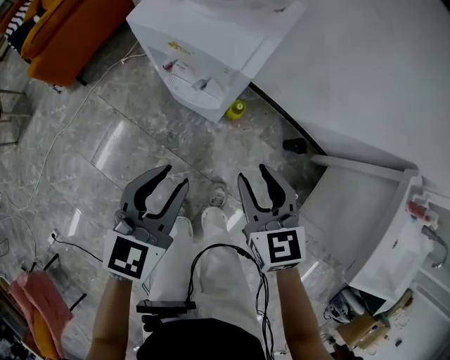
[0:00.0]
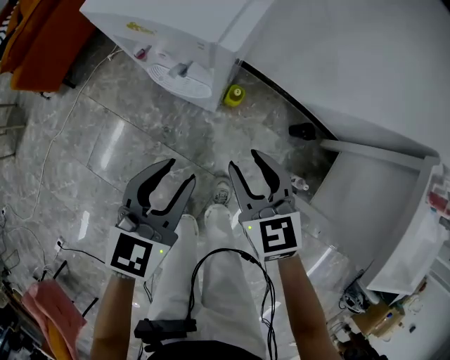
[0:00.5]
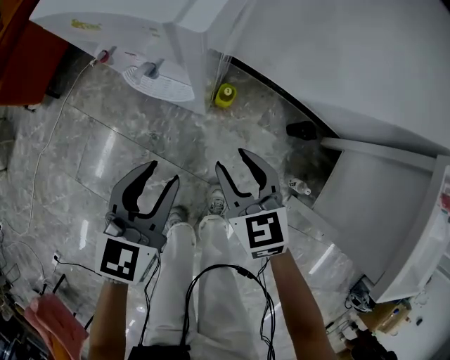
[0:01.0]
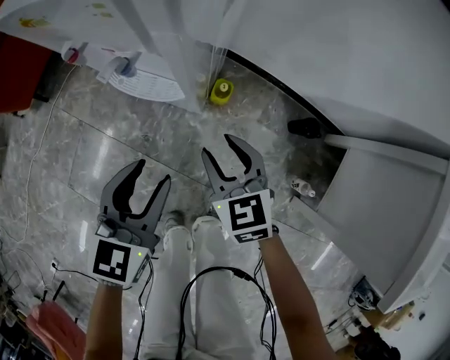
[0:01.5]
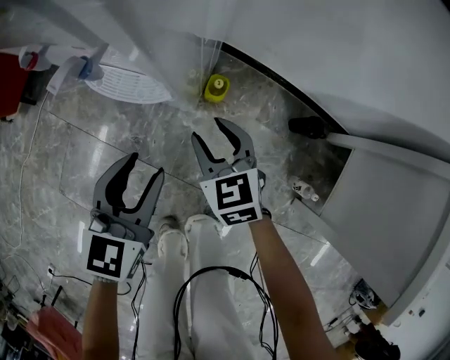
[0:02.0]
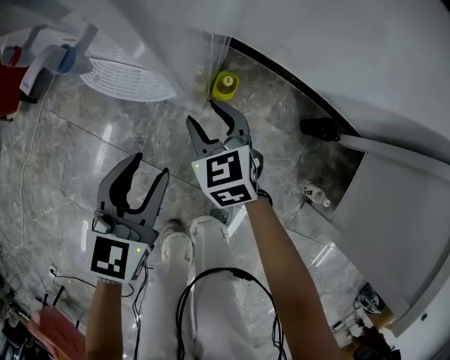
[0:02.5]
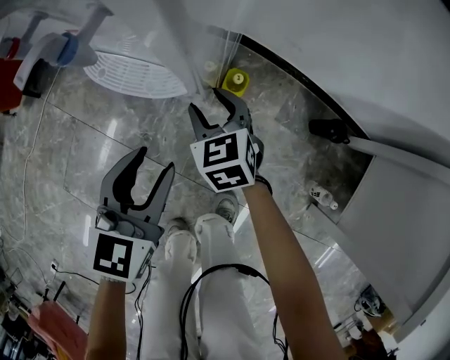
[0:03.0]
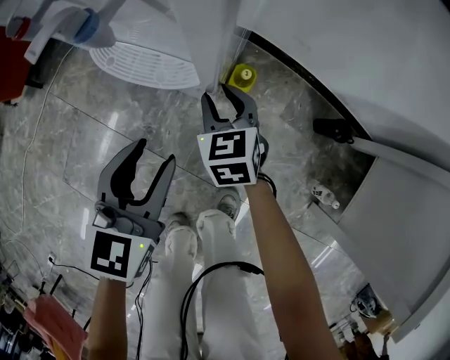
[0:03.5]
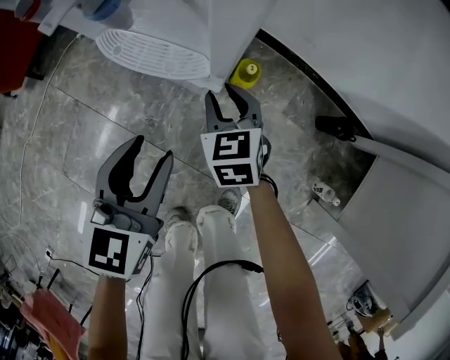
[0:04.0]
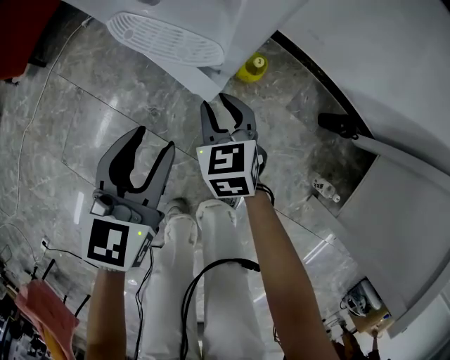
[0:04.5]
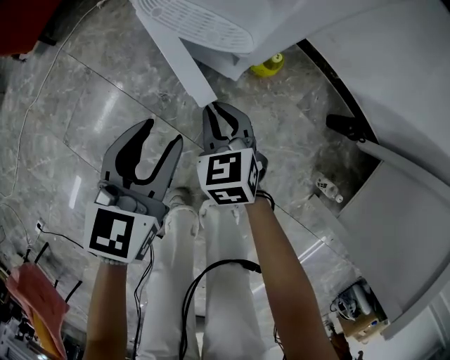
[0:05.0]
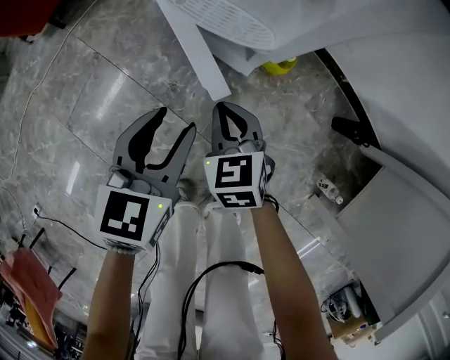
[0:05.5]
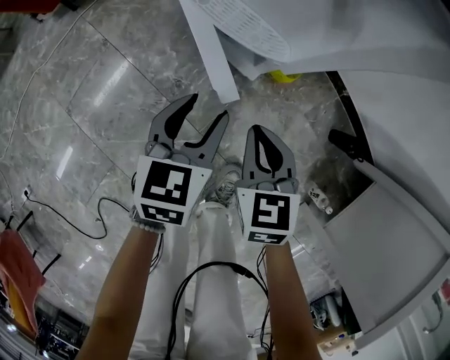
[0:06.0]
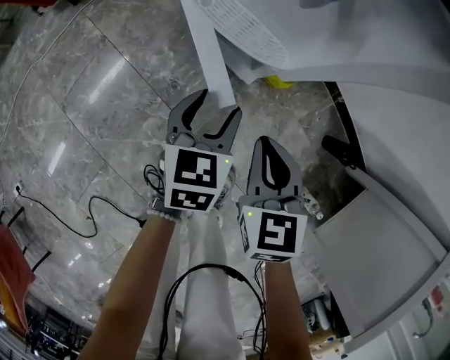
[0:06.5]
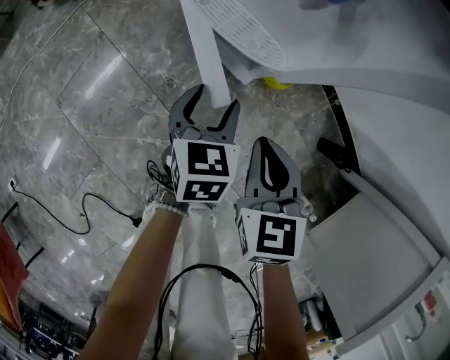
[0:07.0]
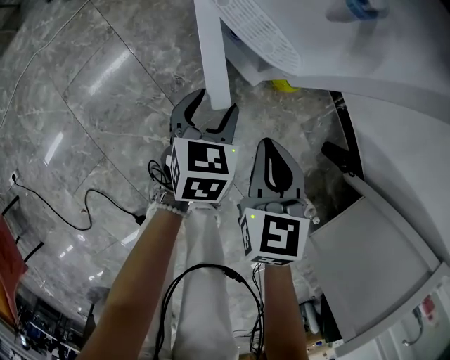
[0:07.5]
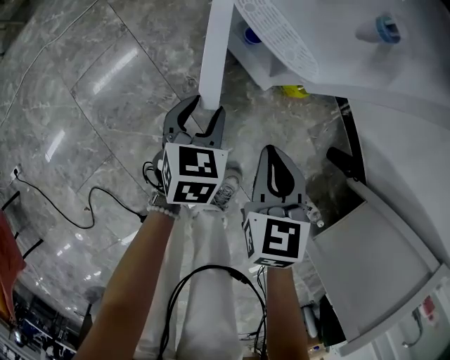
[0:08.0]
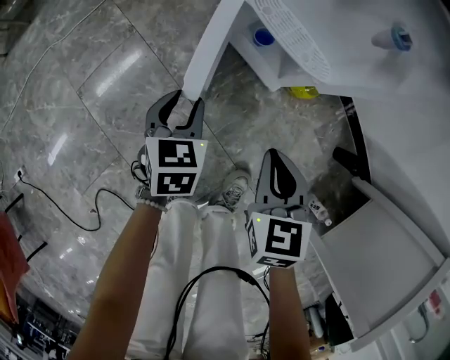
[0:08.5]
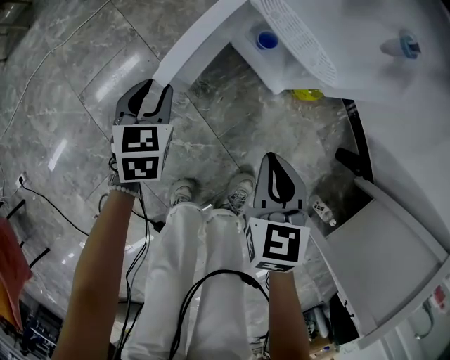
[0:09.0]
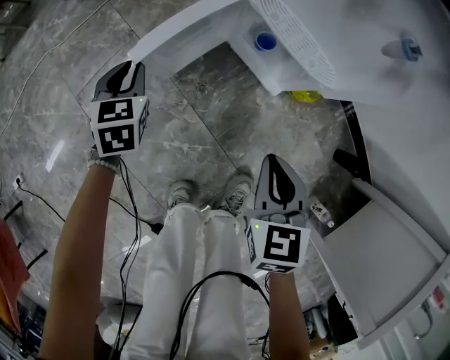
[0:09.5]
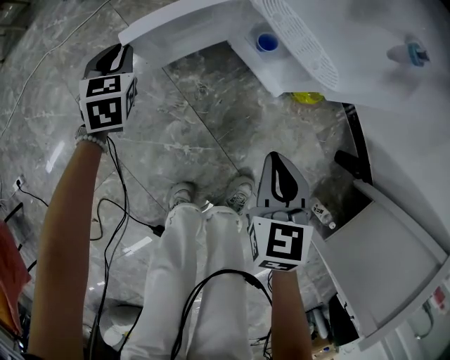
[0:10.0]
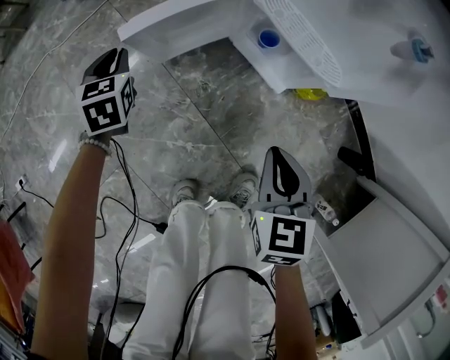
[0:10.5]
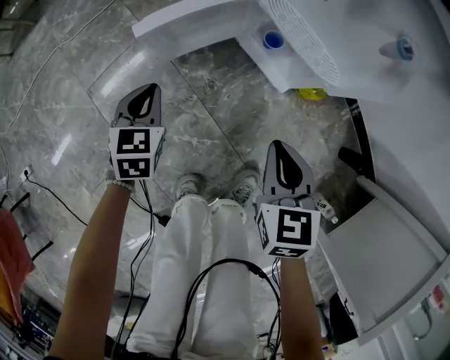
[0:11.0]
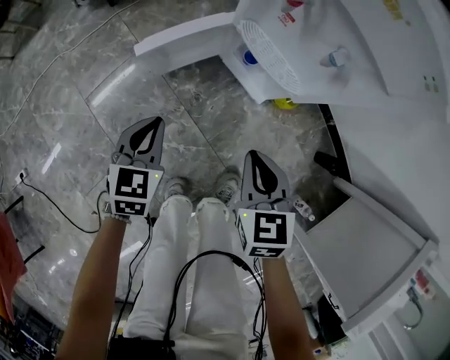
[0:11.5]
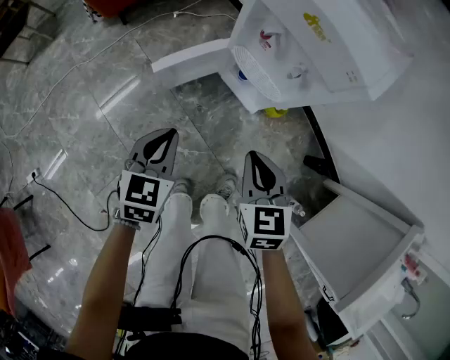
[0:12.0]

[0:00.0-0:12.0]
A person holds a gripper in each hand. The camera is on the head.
0:00.0 to 0:02.0: The grippers both shift downward by roughly 30 cm.
0:02.0 to 0:04.0: The right gripper travels downward by some 10 cm. The left gripper moves some 5 cm.
0:04.0 to 0:06.0: The right gripper is displaced backward and upward by roughly 15 cm, and closes its fingers. The left gripper heads downward, covering roughly 5 cm.
0:06.0 to 0:08.0: The left gripper moves downward and to the left, roughly 10 cm.
0:08.0 to 0:10.0: The left gripper travels to the left and forward by some 30 cm, and closes.
0:10.0 to 0:12.0: The left gripper moves upward, backward and to the right, approximately 35 cm, and changes its angle by roughly 20 degrees, while the right gripper goes approximately 20 cm upward.

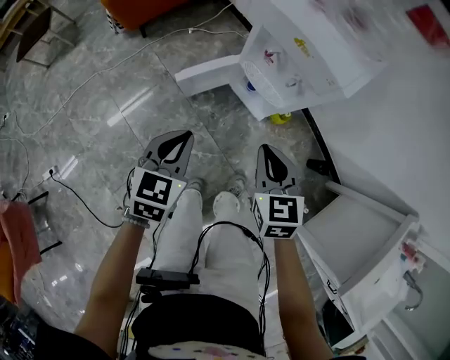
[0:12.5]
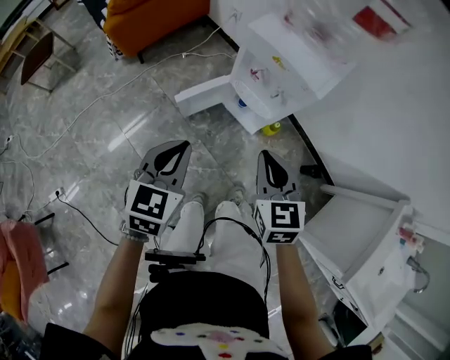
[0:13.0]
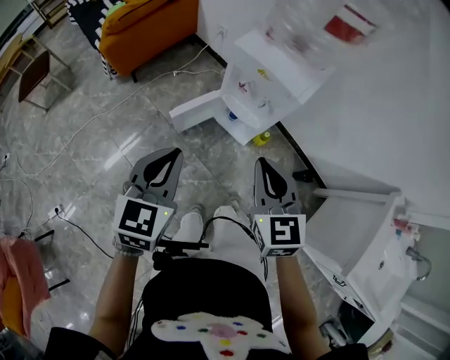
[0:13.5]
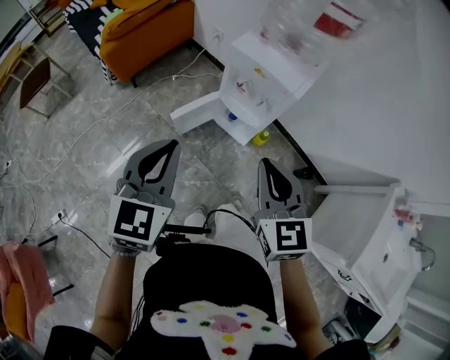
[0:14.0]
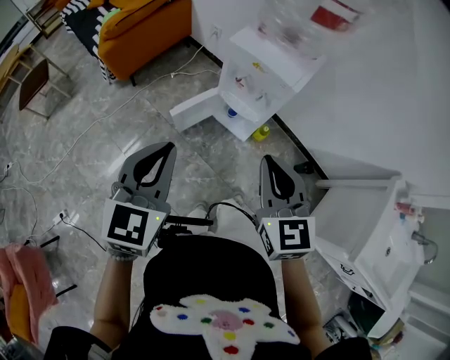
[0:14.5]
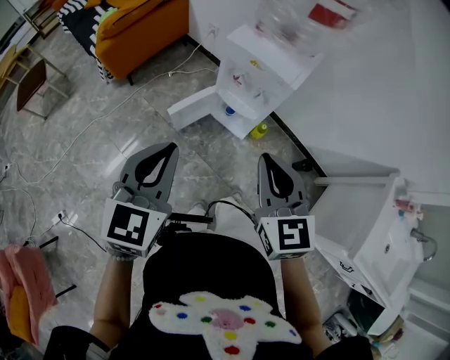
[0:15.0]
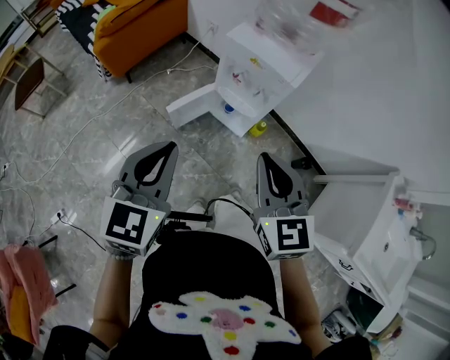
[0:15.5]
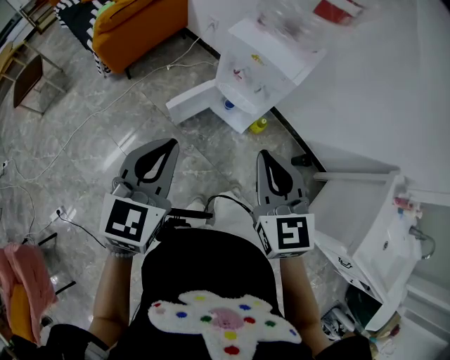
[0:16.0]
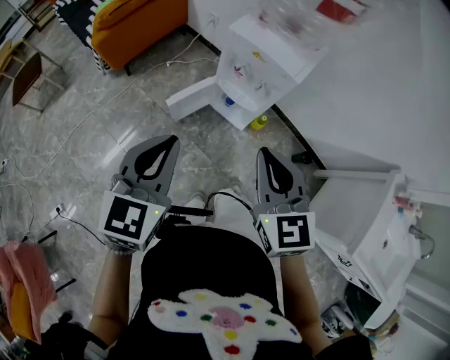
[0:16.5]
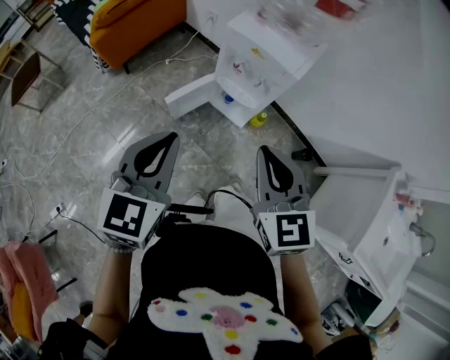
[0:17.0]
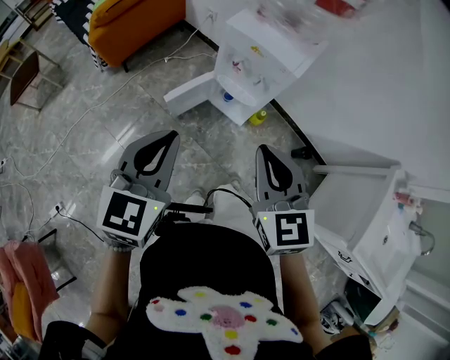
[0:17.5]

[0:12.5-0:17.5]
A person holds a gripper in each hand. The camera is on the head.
0:12.5 to 0:15.0: Both grippers move upward, some 25 cm.
0:15.0 to 0:17.5: There are only small adjustments of the grippers.

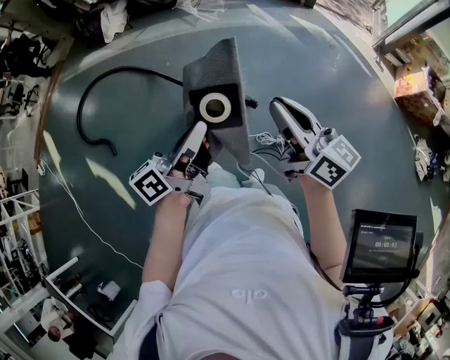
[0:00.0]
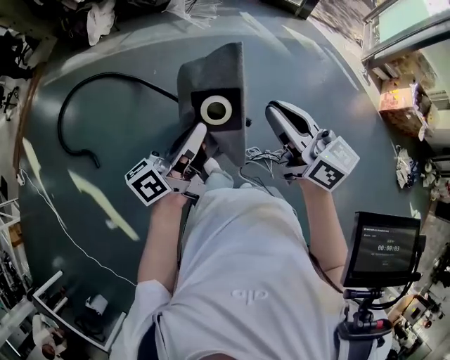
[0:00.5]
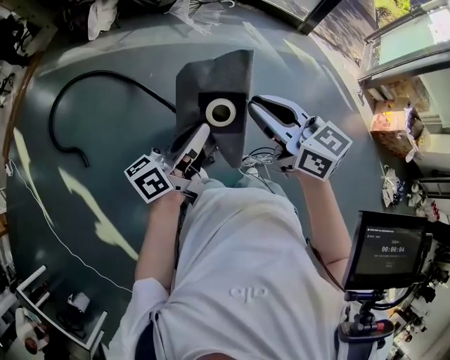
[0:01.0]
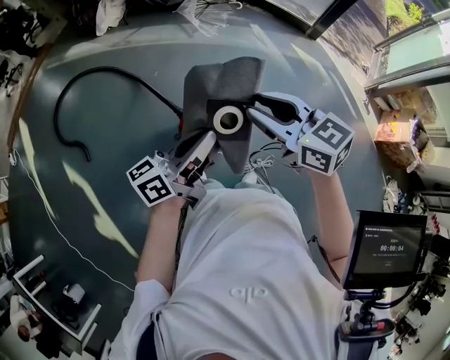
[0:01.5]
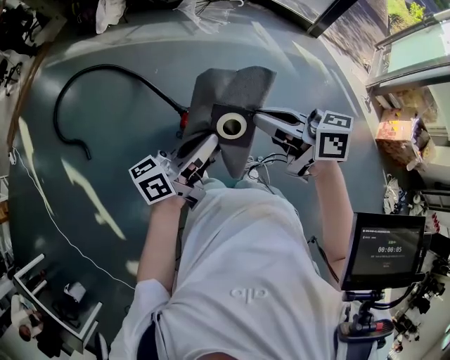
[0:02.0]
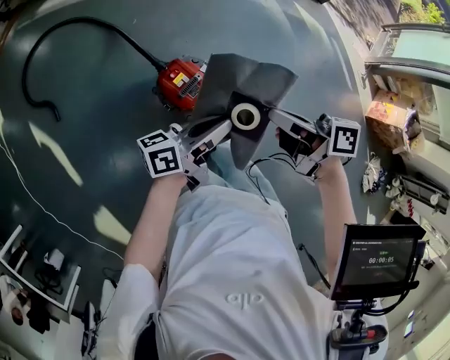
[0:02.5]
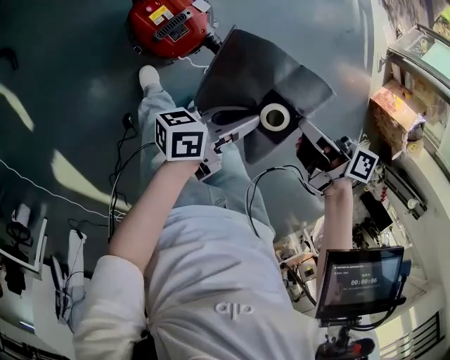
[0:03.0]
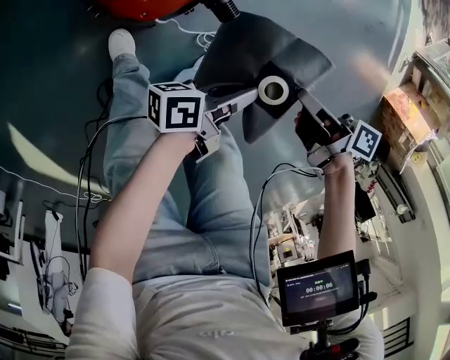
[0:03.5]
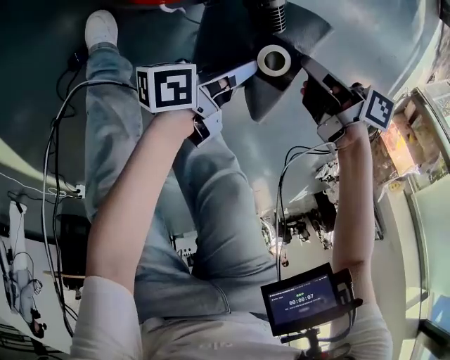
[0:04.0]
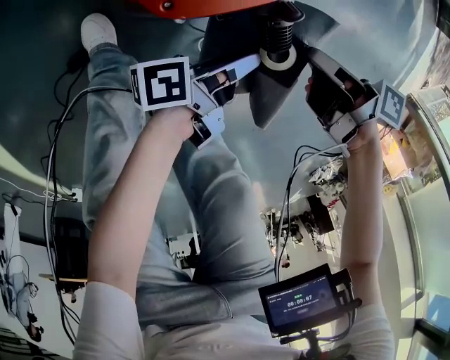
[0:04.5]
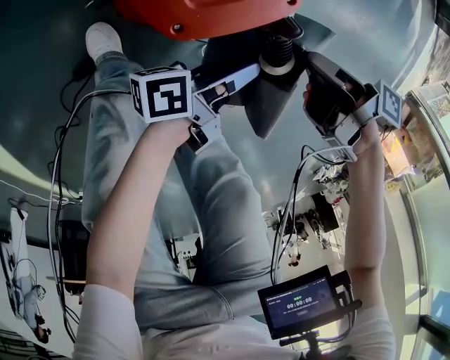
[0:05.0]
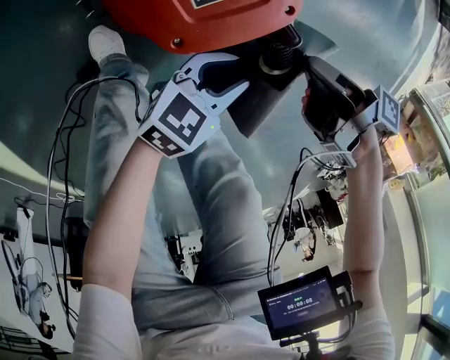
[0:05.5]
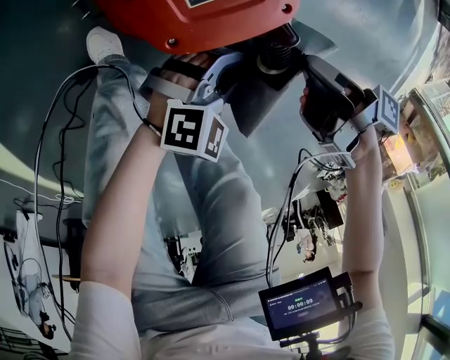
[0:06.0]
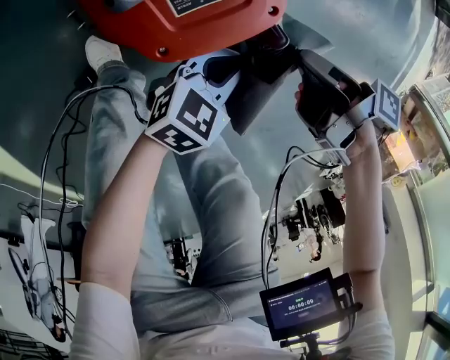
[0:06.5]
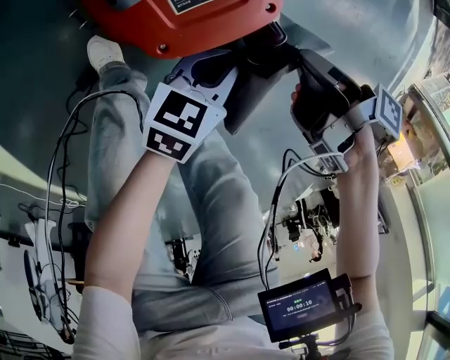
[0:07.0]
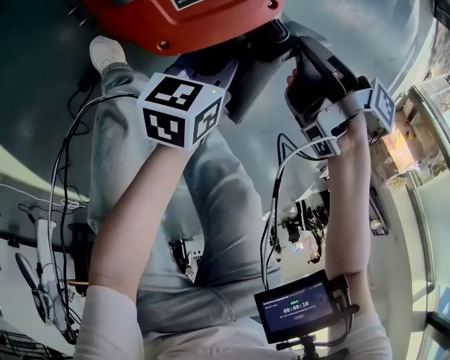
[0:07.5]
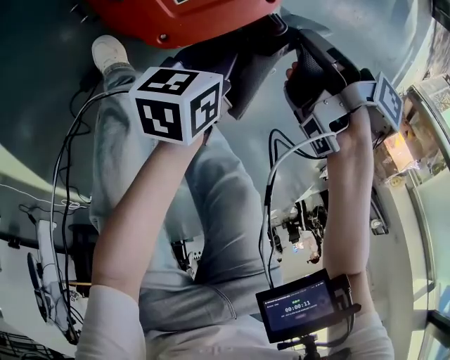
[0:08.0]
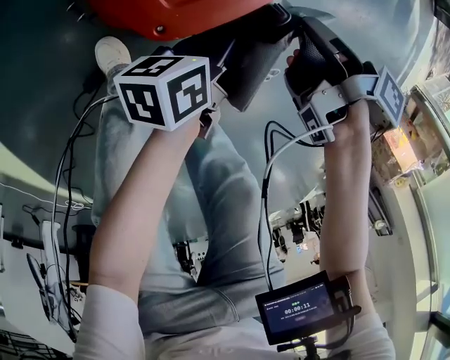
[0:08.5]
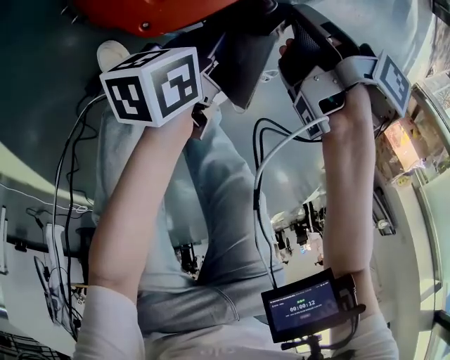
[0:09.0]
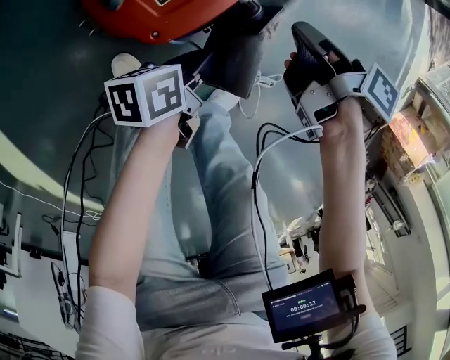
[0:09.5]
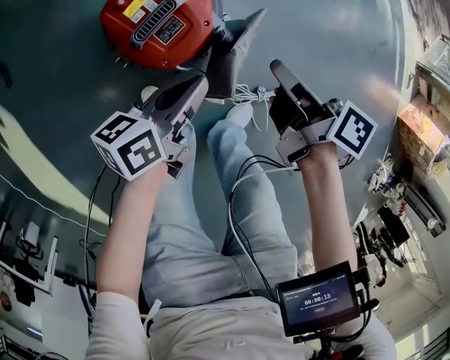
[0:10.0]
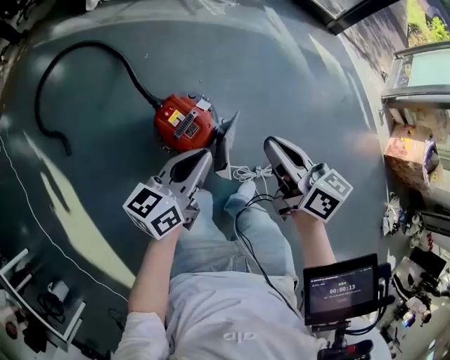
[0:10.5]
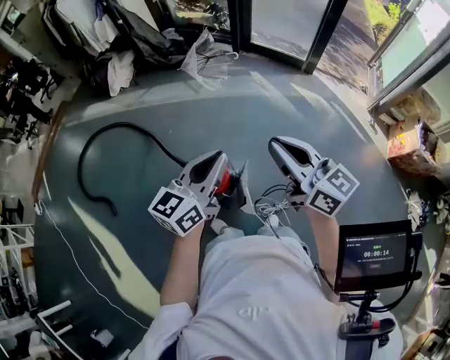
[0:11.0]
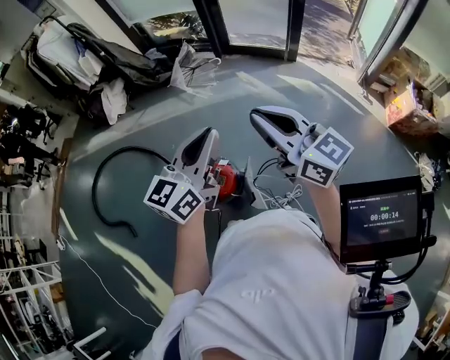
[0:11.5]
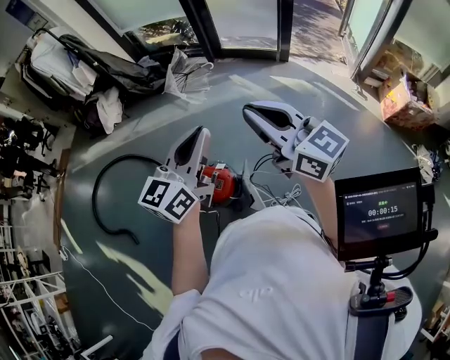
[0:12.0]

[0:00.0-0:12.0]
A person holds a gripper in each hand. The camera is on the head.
0:00.0 to 0:02.0: The left gripper ends up some 15 cm from where it was.
0:02.0 to 0:04.0: The left gripper heads downward, covering roughly 80 cm, and rolls counterclockwise, seen from behind, by roughly 50 degrees.
0:04.0 to 0:06.0: The left gripper moves roughly 5 cm, and rotates around the line of its fingers by some 100 degrees, clockwise from behind.
0:06.0 to 0:08.0: The left gripper changes place by approximately 10 cm, and twists some 80 degrees counterclockwise, seen from behind.
0:08.0 to 0:10.0: The left gripper shifts some 20 cm upward.
0:10.0 to 0:12.0: The left gripper travels upward by approximately 70 cm, and rolls clockwise, seen from behind, by about 50 degrees.
